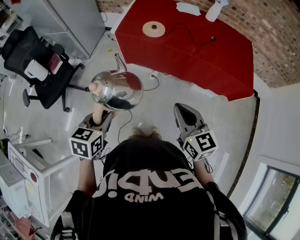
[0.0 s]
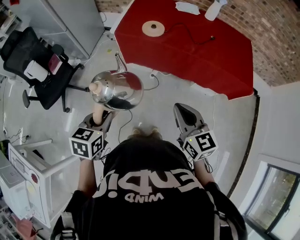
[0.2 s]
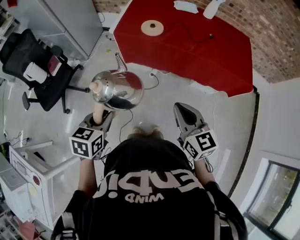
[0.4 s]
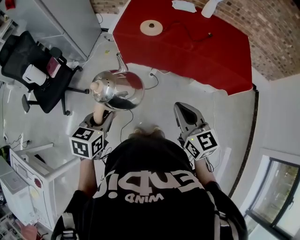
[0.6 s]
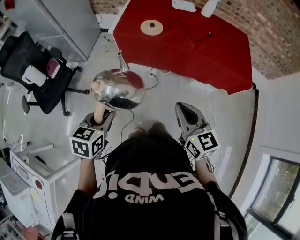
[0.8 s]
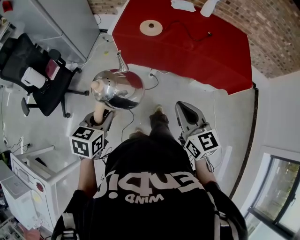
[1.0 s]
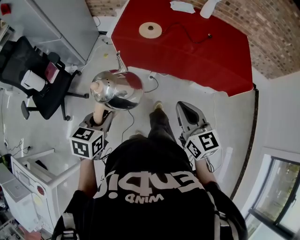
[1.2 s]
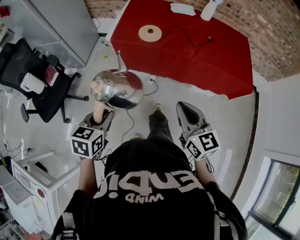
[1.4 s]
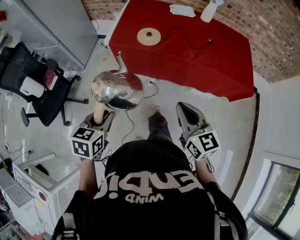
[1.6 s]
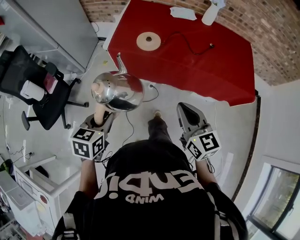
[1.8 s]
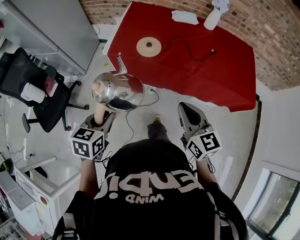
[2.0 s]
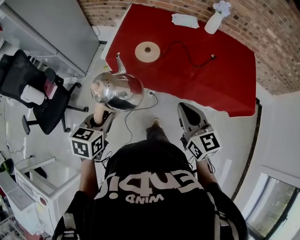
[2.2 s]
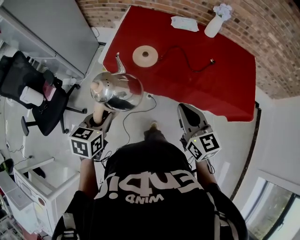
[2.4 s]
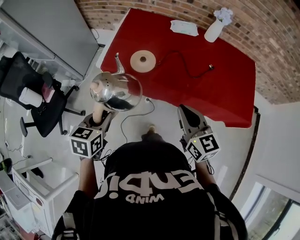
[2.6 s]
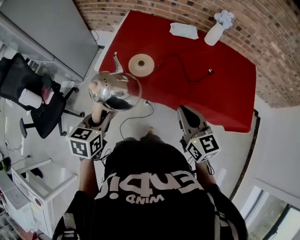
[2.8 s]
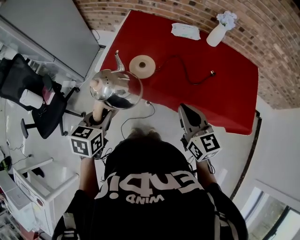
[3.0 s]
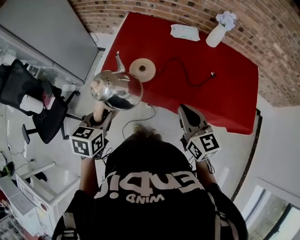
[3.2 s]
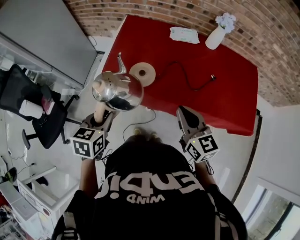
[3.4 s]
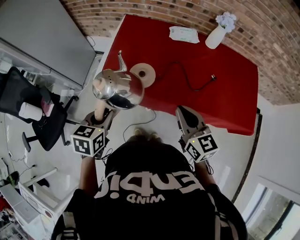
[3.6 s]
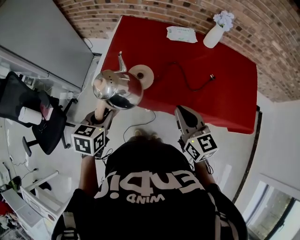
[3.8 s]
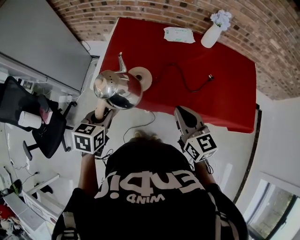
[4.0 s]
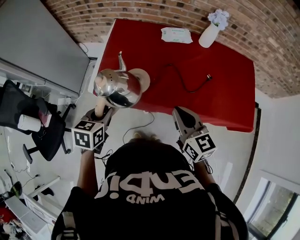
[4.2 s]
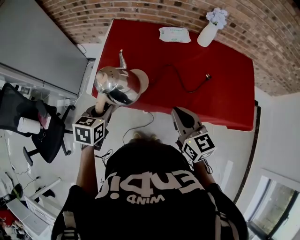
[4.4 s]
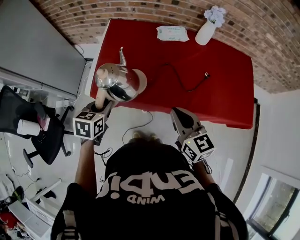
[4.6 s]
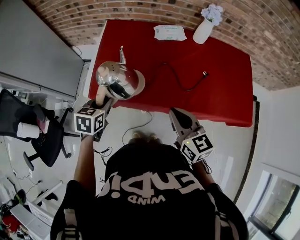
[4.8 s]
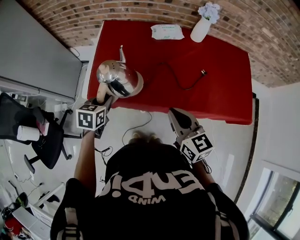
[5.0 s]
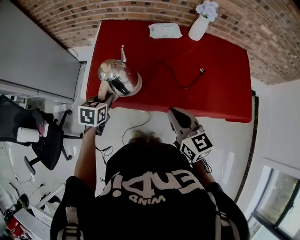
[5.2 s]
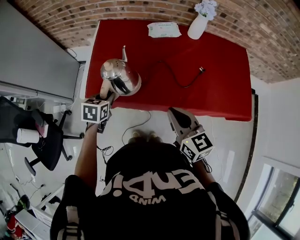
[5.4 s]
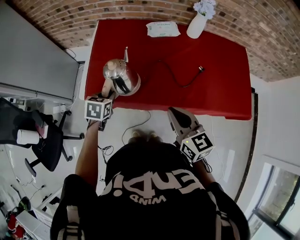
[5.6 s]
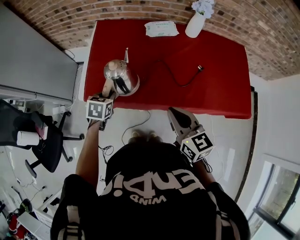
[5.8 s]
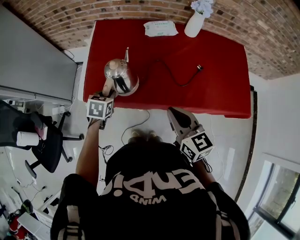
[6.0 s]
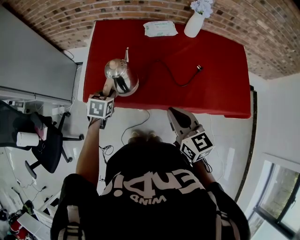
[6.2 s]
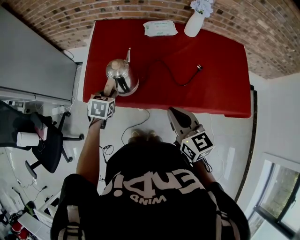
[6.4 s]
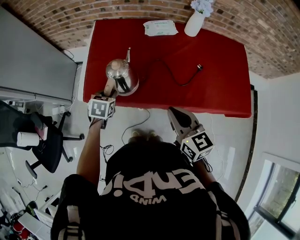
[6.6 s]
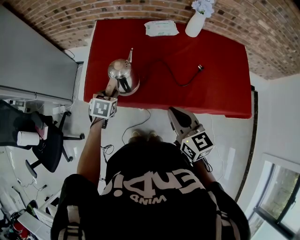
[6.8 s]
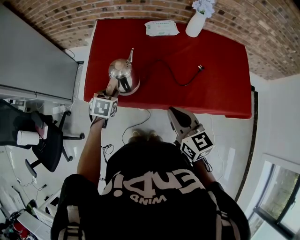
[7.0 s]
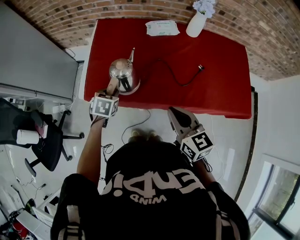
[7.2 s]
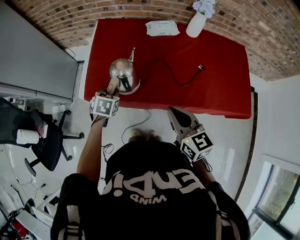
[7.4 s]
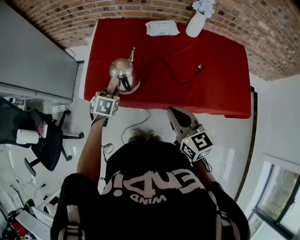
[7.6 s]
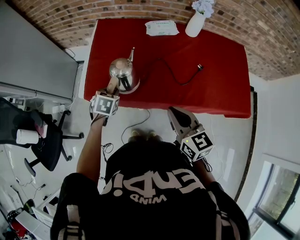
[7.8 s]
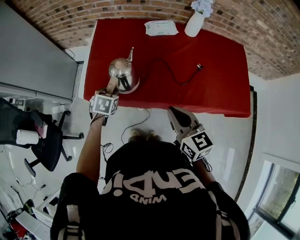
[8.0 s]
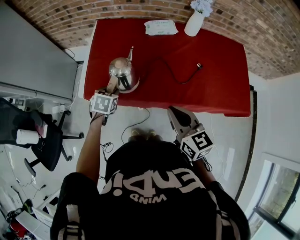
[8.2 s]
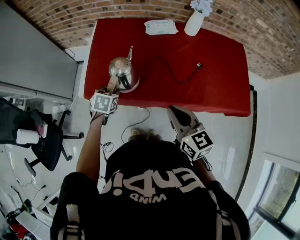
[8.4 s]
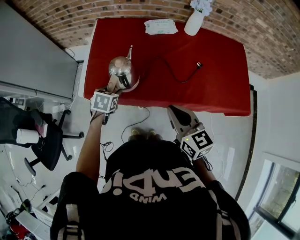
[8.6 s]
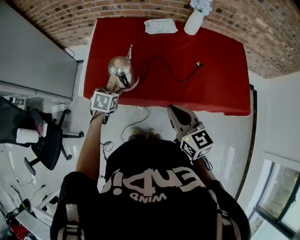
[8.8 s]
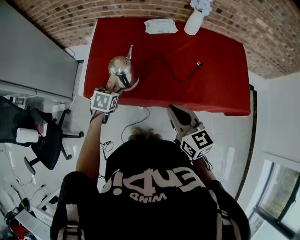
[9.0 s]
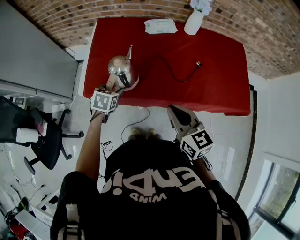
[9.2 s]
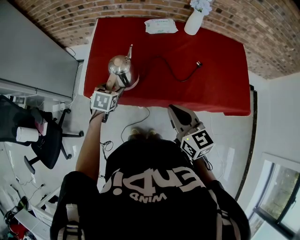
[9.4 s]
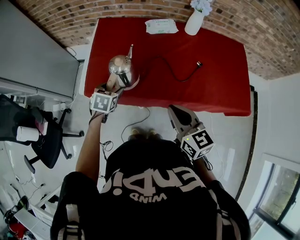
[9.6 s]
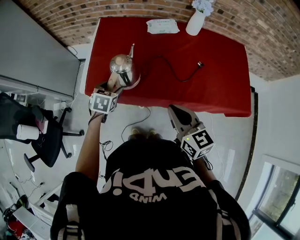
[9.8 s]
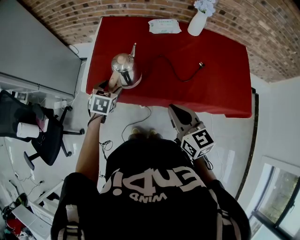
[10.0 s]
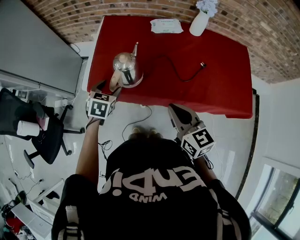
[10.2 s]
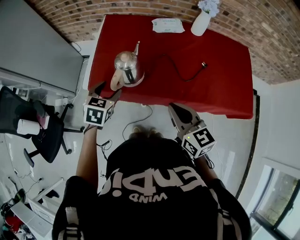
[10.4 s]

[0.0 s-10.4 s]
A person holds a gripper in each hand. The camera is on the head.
0.0 to 1.4 s: The left gripper heads forward, covering about 5 cm.
1.4 to 3.0 s: Both grippers travel together forward, approximately 30 cm.
3.0 to 4.4 s: The left gripper shifts some 15 cm forward. The right gripper heads forward, covering roughly 5 cm.
4.4 to 6.0 s: The left gripper travels downward and forward by approximately 15 cm.
6.0 to 7.4 s: The grippers stay close to where they were, moving slightly.
7.4 to 9.0 s: The left gripper opens its fingers.
9.0 to 10.4 s: The left gripper goes about 10 cm upward.

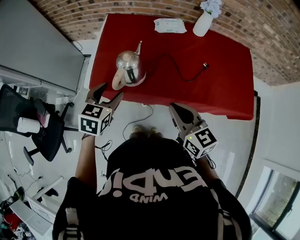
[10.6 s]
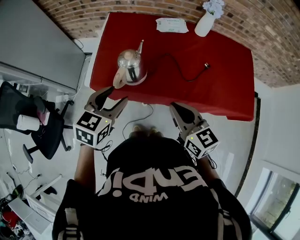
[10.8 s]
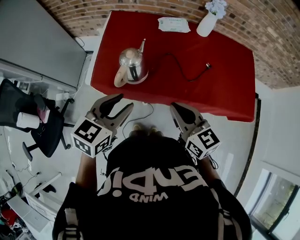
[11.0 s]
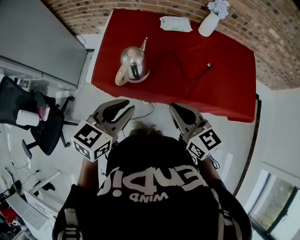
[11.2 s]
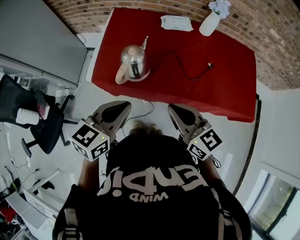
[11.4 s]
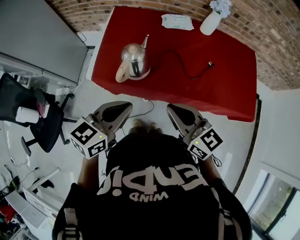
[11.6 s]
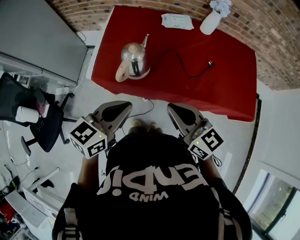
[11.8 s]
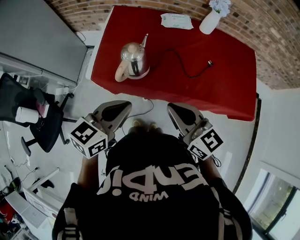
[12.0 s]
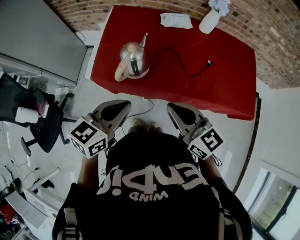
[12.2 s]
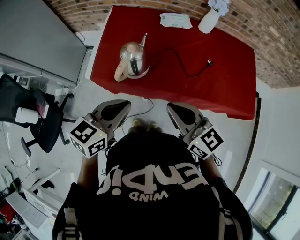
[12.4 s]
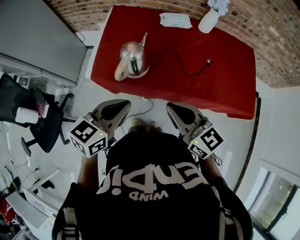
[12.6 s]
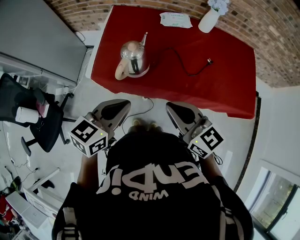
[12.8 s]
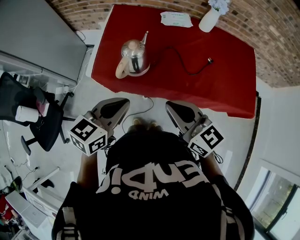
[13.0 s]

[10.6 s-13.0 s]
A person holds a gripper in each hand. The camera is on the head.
10.6 to 11.8 s: The right gripper shifts by roughly 5 cm; the left gripper moves backward, upward and to the right, about 15 cm, swivels some 30 degrees, and closes.
11.8 to 13.0 s: Neither gripper changes place.

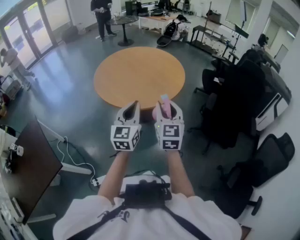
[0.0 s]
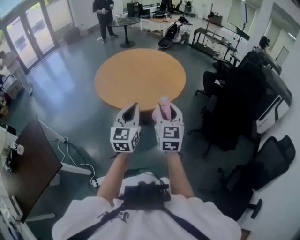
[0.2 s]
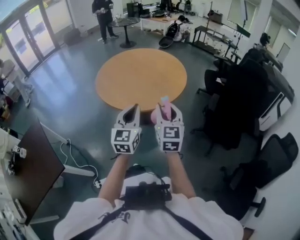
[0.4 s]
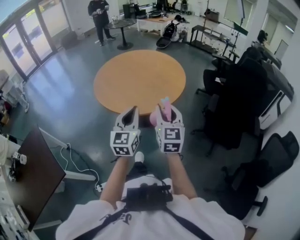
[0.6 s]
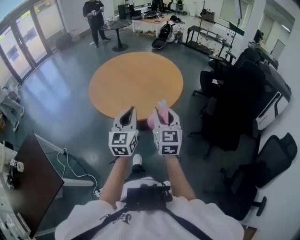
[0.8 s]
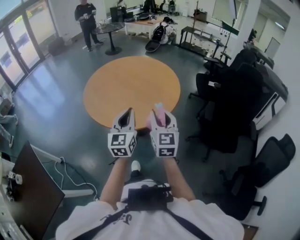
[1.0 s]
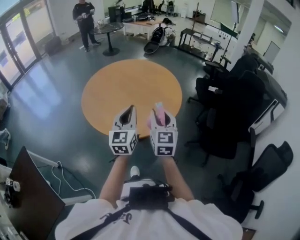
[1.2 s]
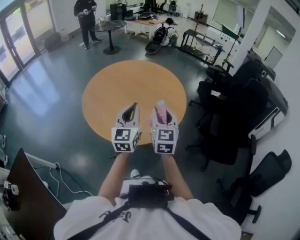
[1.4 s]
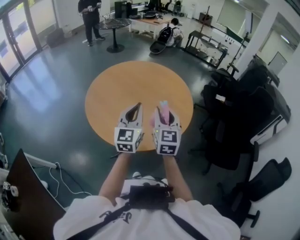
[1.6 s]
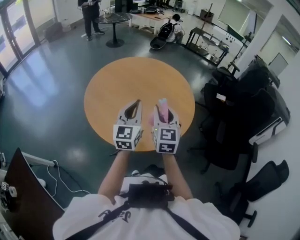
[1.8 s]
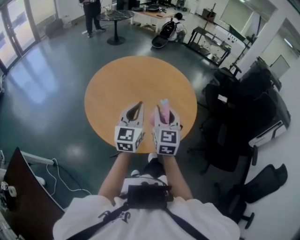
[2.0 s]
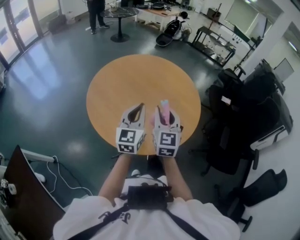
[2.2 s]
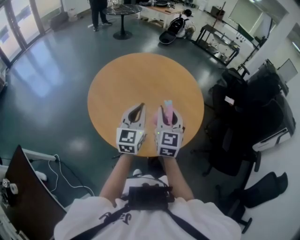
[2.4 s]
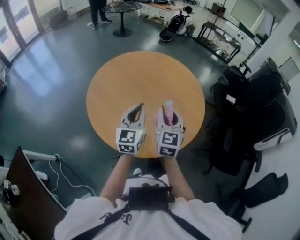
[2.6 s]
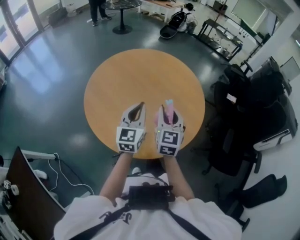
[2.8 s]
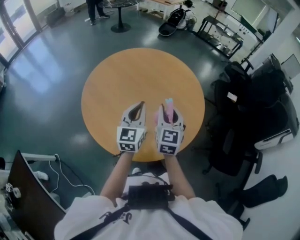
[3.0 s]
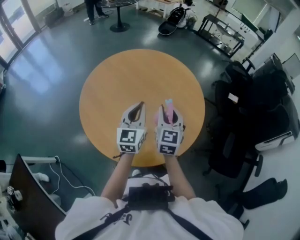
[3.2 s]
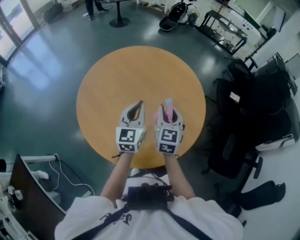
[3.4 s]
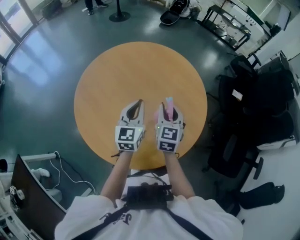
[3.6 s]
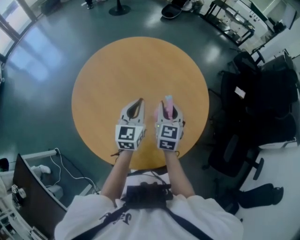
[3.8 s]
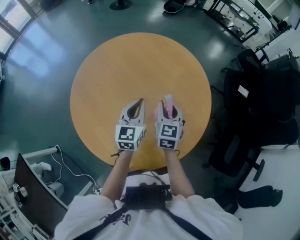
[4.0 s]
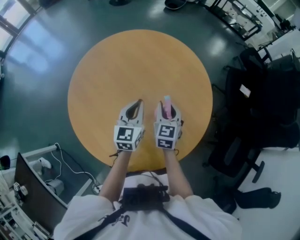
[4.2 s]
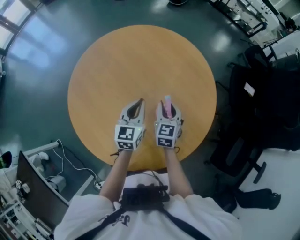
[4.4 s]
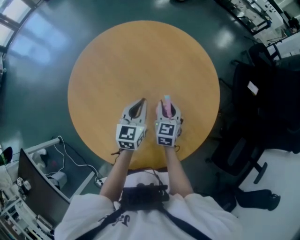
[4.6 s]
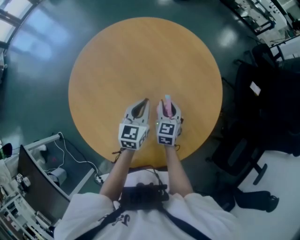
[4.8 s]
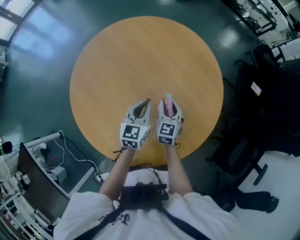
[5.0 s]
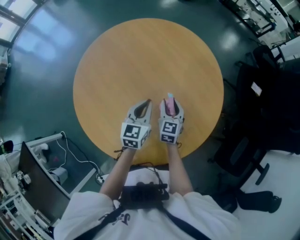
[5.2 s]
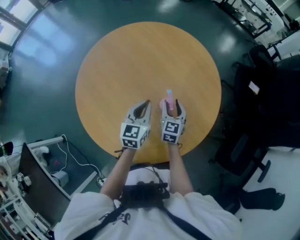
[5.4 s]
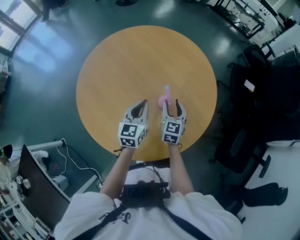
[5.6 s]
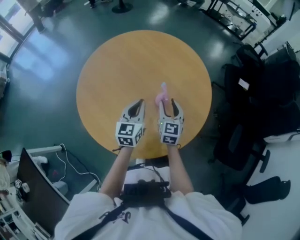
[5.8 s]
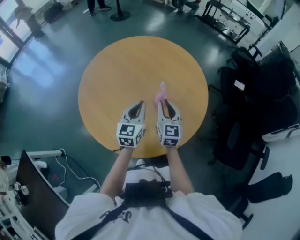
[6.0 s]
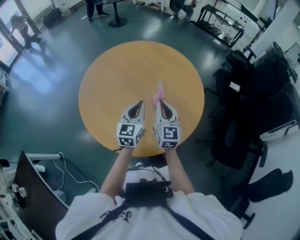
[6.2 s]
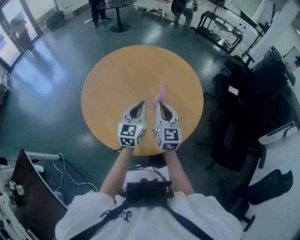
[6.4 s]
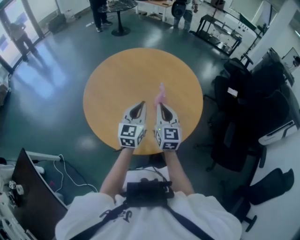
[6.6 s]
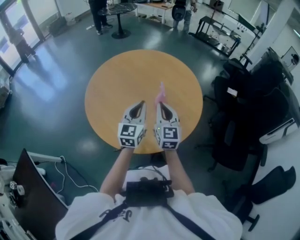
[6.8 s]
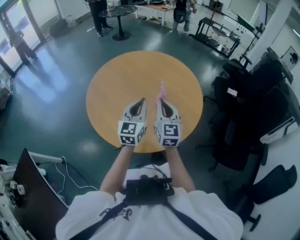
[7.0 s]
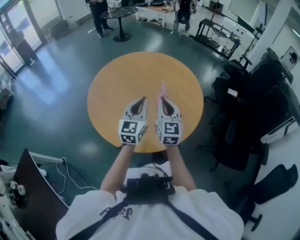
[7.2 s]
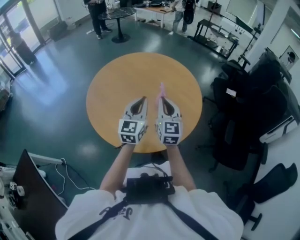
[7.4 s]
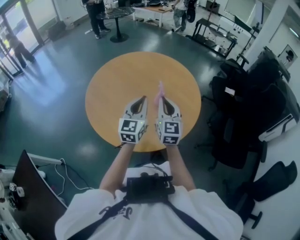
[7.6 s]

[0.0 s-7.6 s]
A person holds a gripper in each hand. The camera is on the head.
0.0 to 1.6 s: Both grippers move forward, roughly 30 cm.
1.6 to 3.0 s: The two grippers go approximately 15 cm forward and downward.
3.0 to 4.6 s: The grippers both shift downward and forward by approximately 20 cm.
4.6 to 6.0 s: The right gripper goes approximately 15 cm backward and upward. The left gripper is displaced backward by about 10 cm.
6.0 to 7.6 s: The two grippers go some 15 cm upward and backward. The right gripper closes up.

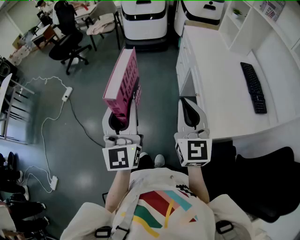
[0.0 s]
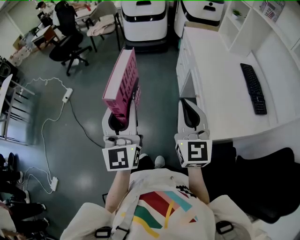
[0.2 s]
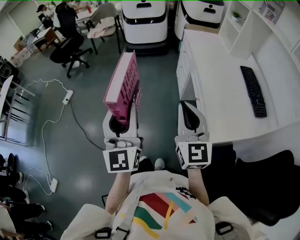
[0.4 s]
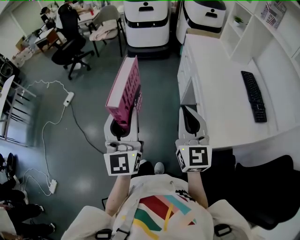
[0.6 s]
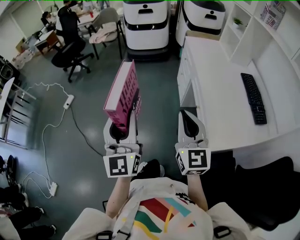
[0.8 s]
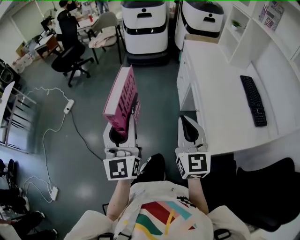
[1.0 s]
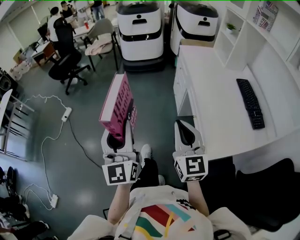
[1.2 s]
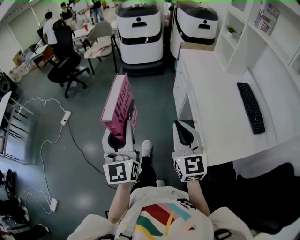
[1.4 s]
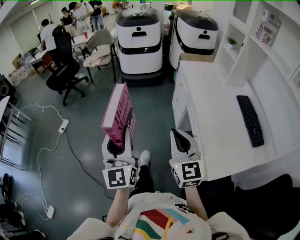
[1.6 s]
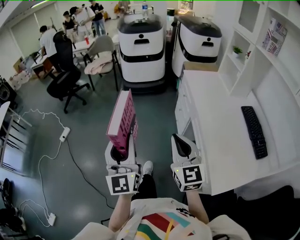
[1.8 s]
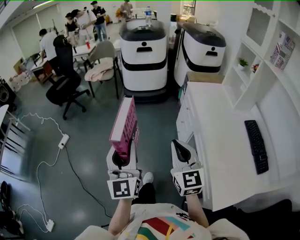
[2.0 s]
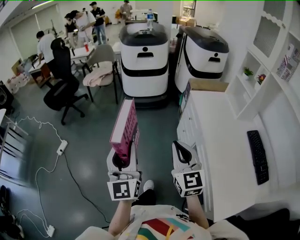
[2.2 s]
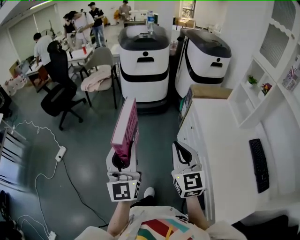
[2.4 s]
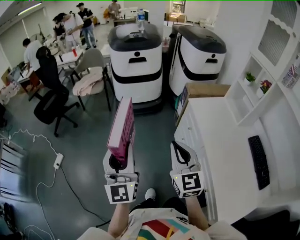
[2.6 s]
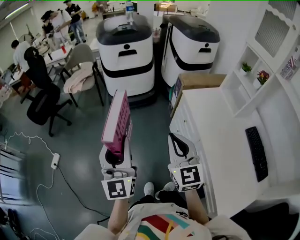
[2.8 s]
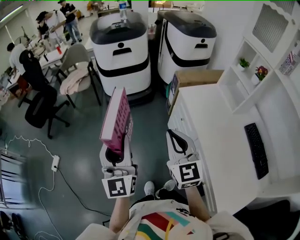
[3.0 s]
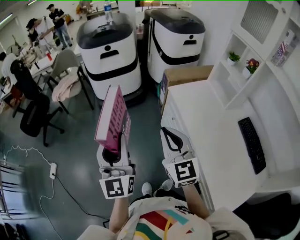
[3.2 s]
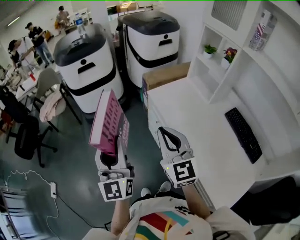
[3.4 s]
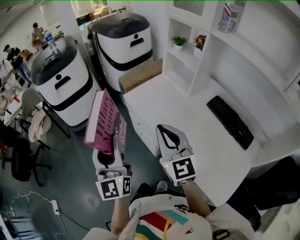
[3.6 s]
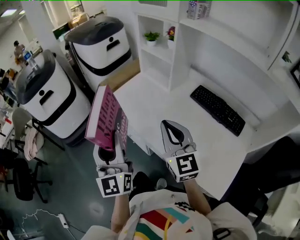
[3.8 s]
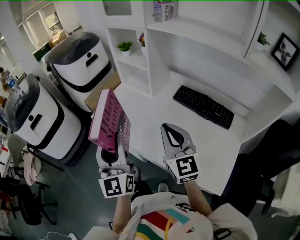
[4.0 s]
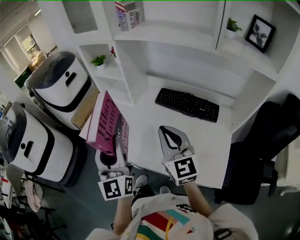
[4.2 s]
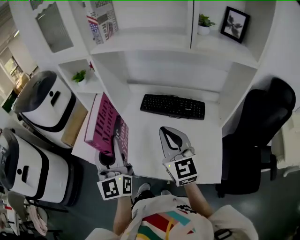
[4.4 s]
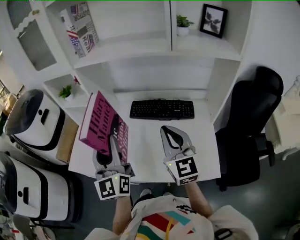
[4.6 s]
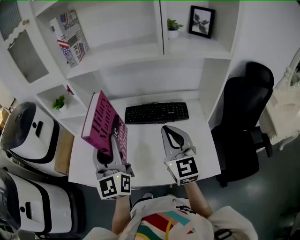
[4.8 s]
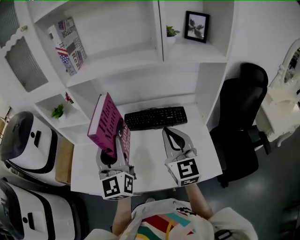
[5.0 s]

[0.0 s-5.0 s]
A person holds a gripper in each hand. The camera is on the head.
0.0 to 1.6 s: Both grippers travel together forward, some 10 cm.
1.6 to 3.4 s: The two grippers travel together, forward, roughly 40 cm.
3.4 to 5.0 s: Both grippers are carried about 40 cm. The left gripper turns by roughly 70 degrees. Meanwhile the right gripper swivels roughly 70 degrees.
